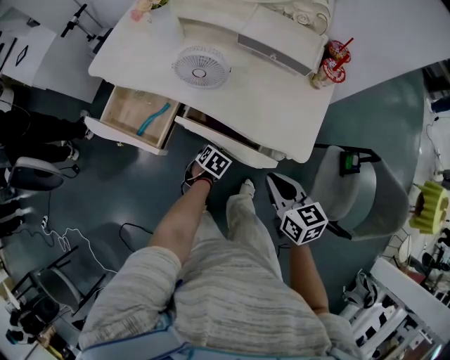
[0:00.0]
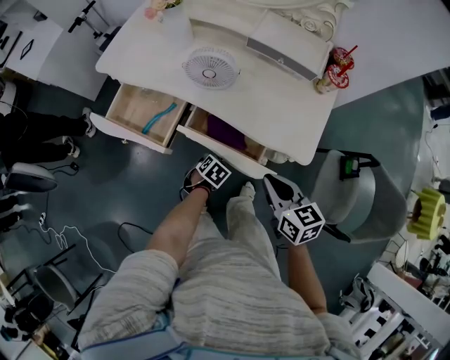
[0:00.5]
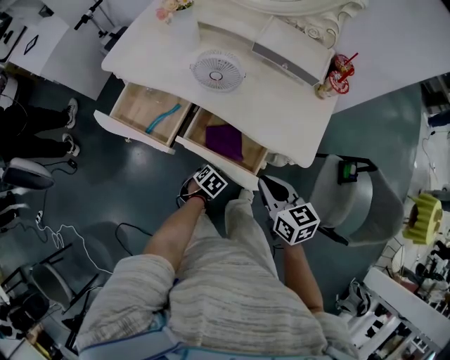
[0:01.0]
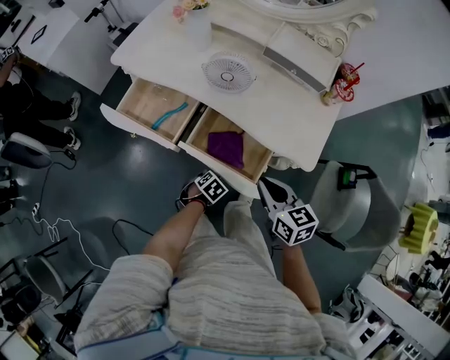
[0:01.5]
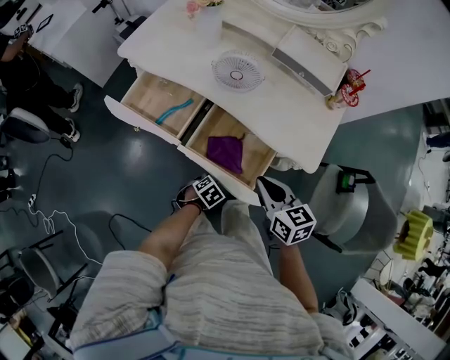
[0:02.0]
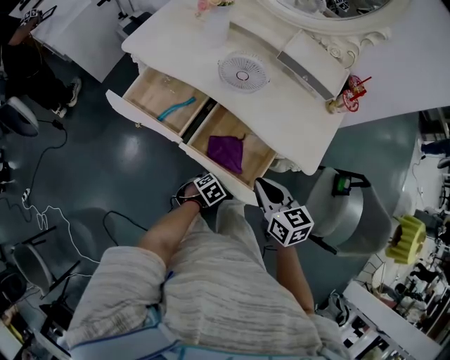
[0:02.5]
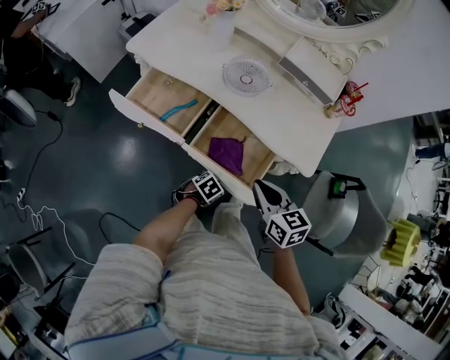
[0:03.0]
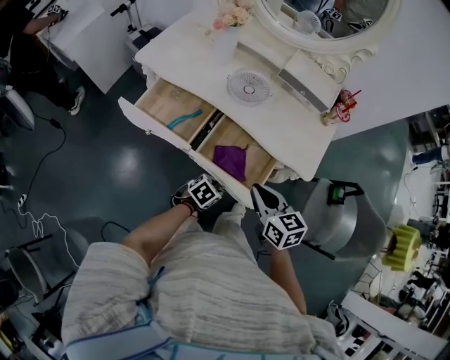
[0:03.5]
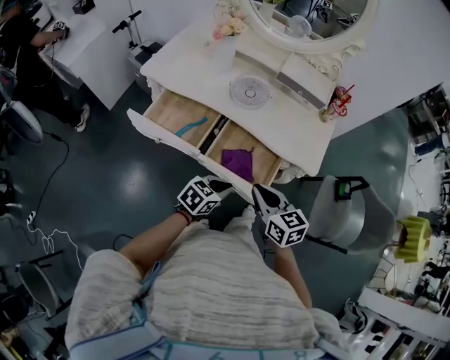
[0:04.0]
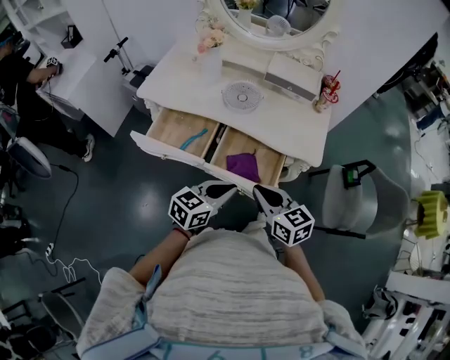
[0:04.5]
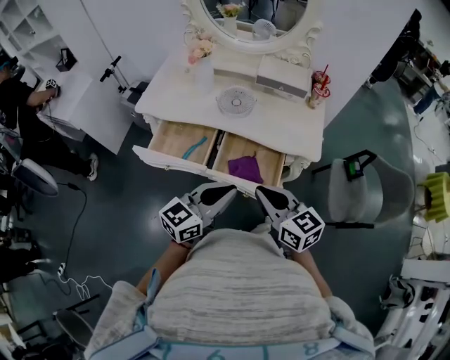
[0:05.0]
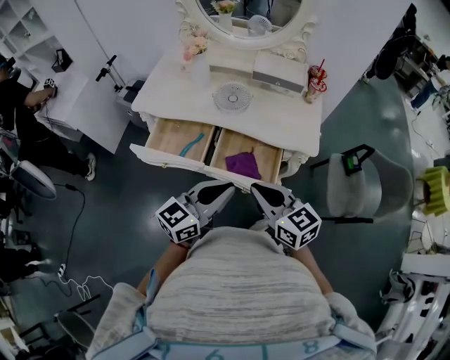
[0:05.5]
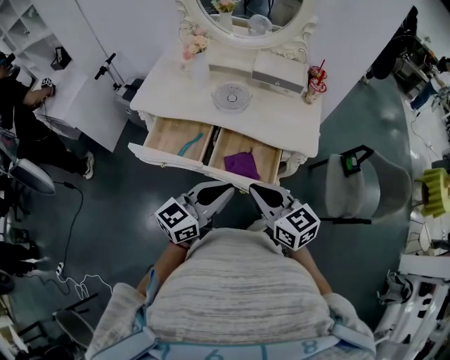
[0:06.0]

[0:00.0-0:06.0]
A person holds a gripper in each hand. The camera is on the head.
0:00.0 to 0:02.0: The left gripper is displaced backward by about 15 cm. Meanwhile the right gripper travels to the left by approximately 10 cm.
0:02.0 to 0:04.0: The left gripper moves upward, about 20 cm, and angles its fingers upward, by roughly 40 degrees. The right gripper changes place by approximately 10 cm.
0:04.0 to 0:06.0: The right gripper is displaced upward and backward by some 10 cm; the left gripper travels upward by roughly 20 cm, and angles its fingers upward, by about 40 degrees.

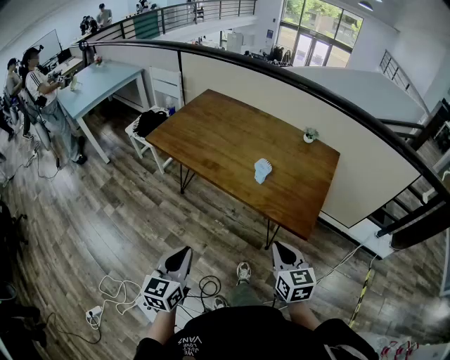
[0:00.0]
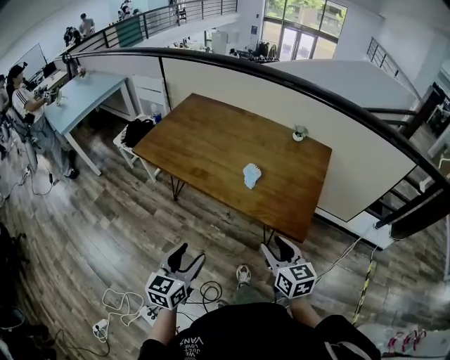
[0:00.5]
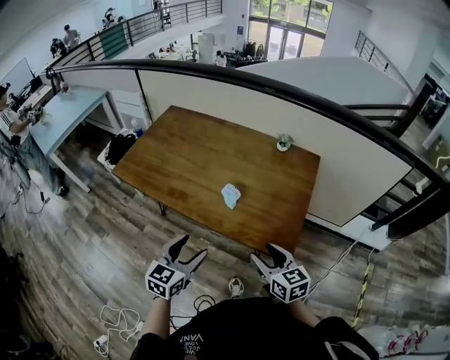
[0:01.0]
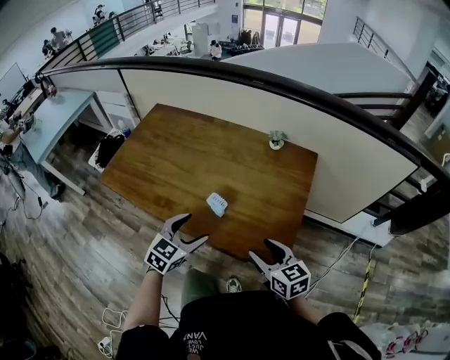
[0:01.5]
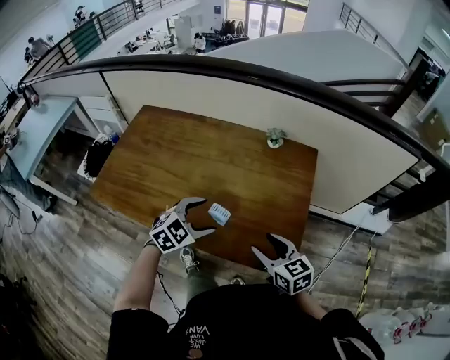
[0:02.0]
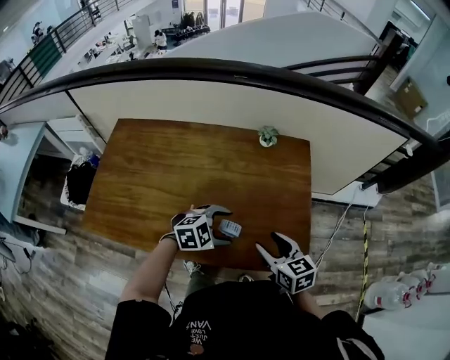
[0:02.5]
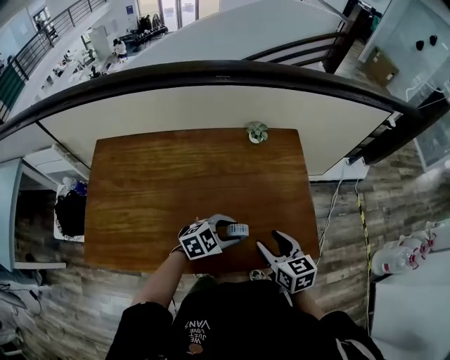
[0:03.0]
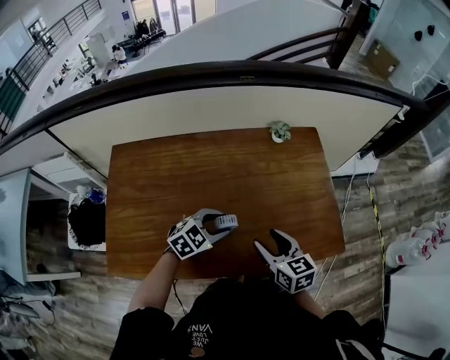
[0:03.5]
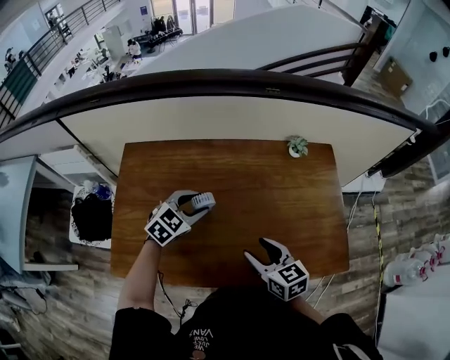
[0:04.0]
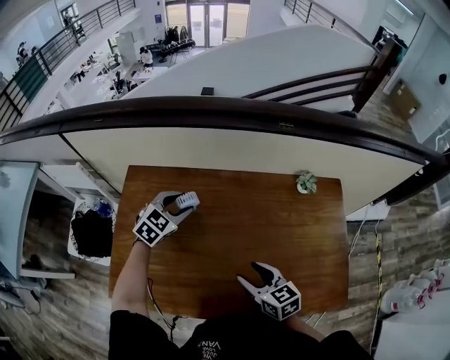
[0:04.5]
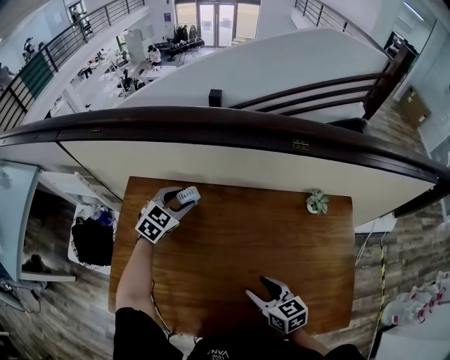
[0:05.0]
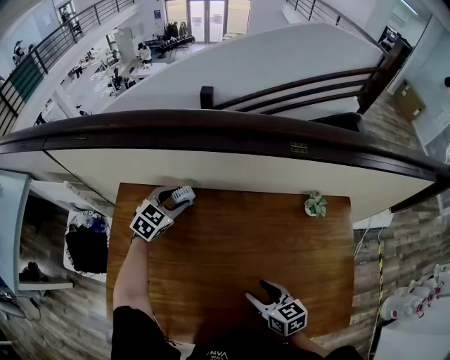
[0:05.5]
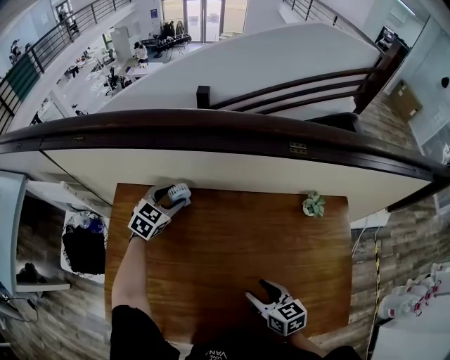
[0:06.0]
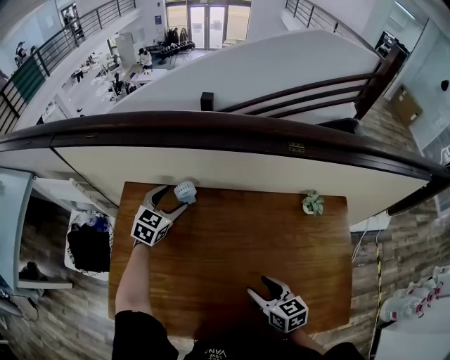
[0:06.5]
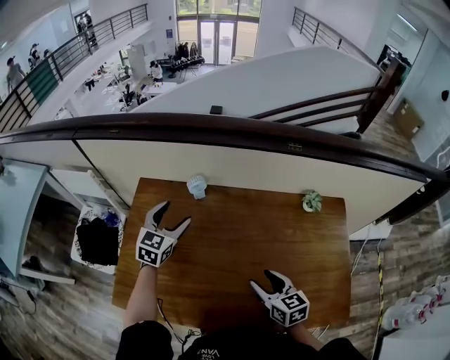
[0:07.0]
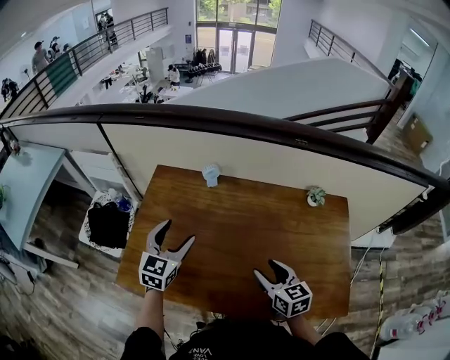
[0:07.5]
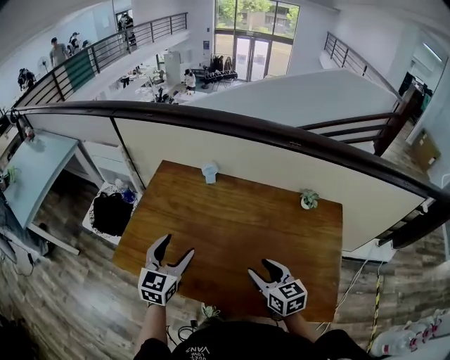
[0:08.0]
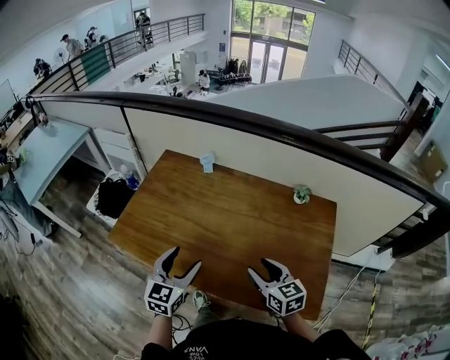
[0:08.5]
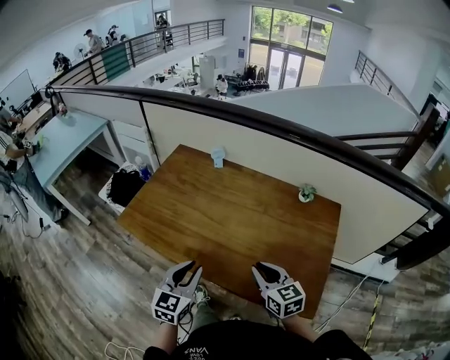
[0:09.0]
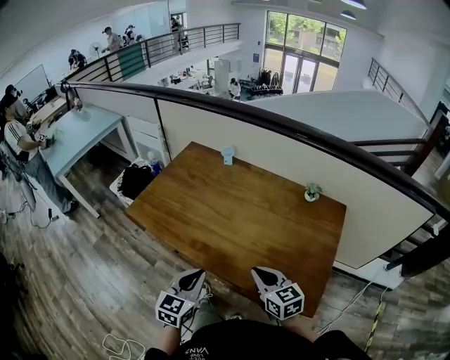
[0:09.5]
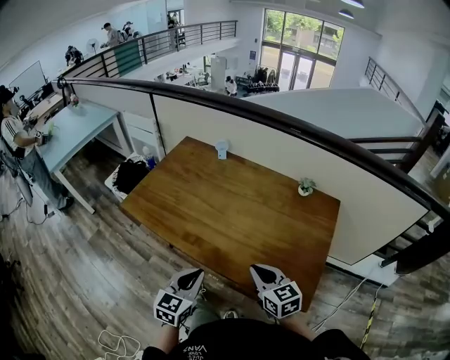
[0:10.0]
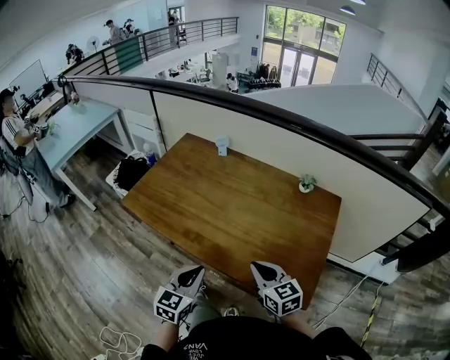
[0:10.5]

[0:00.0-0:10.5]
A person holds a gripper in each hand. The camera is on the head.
0:00.0 to 0:02.0: The left gripper heads forward and to the right, covering about 40 cm, rotates roughly 70 degrees, and opens its fingers. Meanwhile the right gripper goes some 25 cm forward, and opens.
0:02.0 to 0:04.0: The left gripper shifts by approximately 30 cm, and closes up. The right gripper moves roughly 30 cm.
0:04.0 to 0:06.5: The left gripper shifts roughly 25 cm forward and to the left, changes its angle by roughly 30 degrees, and opens up, while the right gripper heads forward and downward, covering approximately 10 cm.
0:06.5 to 0:08.5: The right gripper heads backward, upward and to the right, covering about 20 cm, and swivels some 20 degrees. Meanwhile the left gripper goes approximately 50 cm backward, and changes its angle by about 30 degrees.
0:08.5 to 0:10.5: The right gripper is displaced backward by some 10 cm, and closes. Meanwhile the left gripper is displaced backward by roughly 15 cm, and closes up.

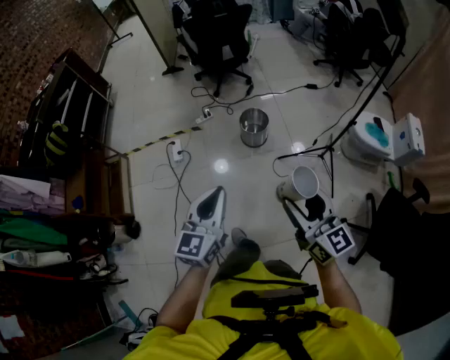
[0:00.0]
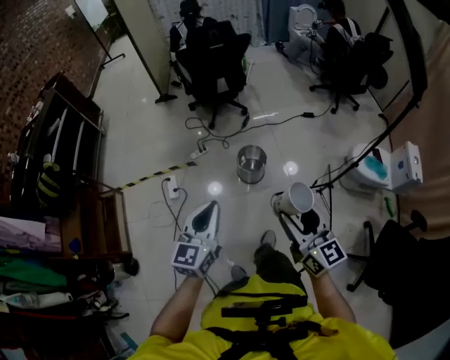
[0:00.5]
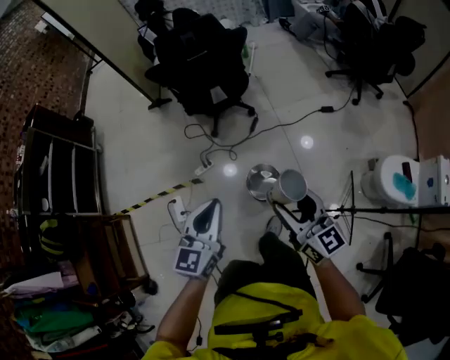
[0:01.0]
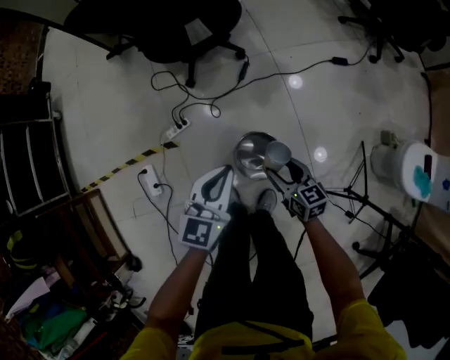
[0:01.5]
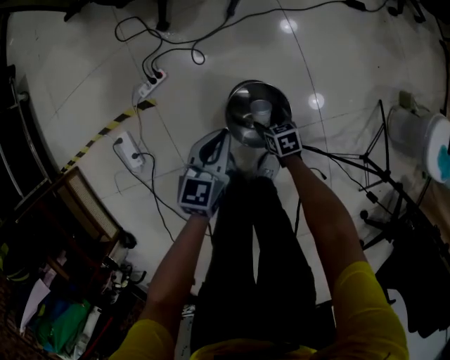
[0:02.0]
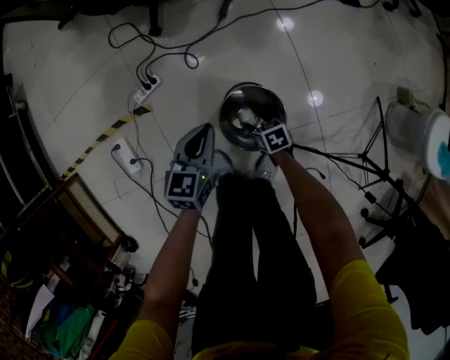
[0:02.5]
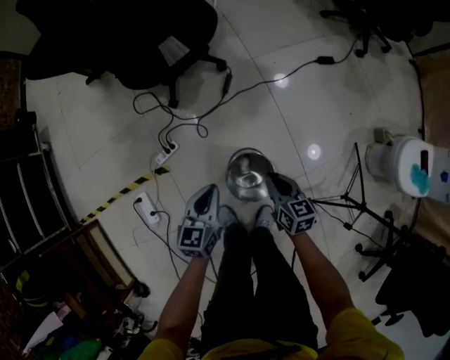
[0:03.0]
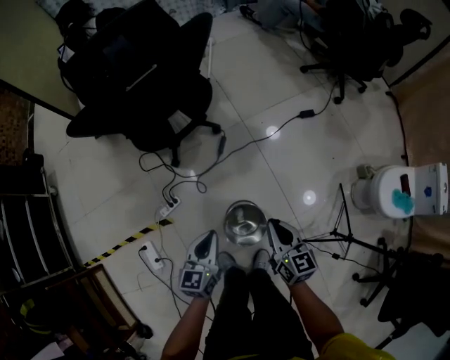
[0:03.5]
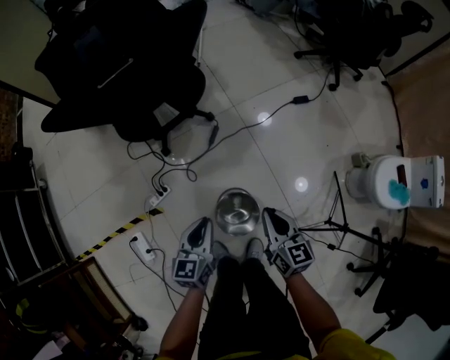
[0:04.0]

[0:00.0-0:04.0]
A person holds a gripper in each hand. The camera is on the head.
0:00.0 to 0:02.0: The two grippers travel together, forward, roughly 70 cm. Both grippers travel together downward, approximately 70 cm. The left gripper swivels roughly 30 degrees, while the right gripper tips its fingers downward by about 60 degrees.
0:02.0 to 0:04.0: The left gripper travels upward by about 20 cm. Meanwhile the right gripper is displaced upward by about 50 cm, points its fingers about 40 degrees further upward, and closes.

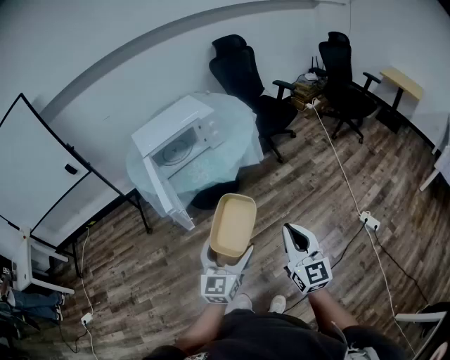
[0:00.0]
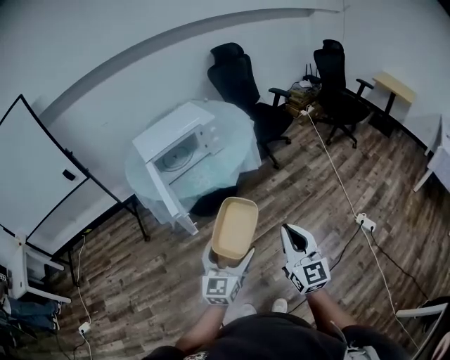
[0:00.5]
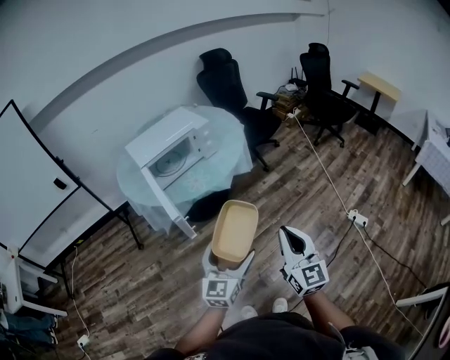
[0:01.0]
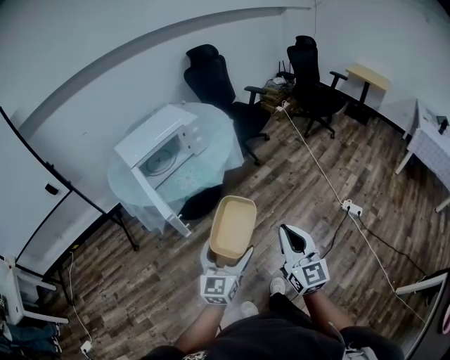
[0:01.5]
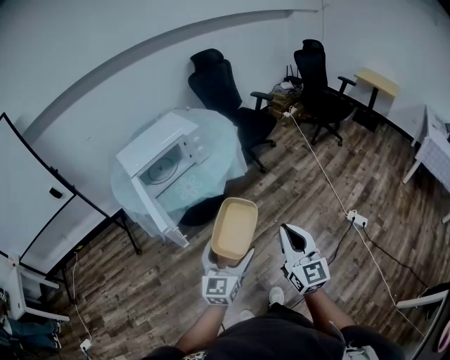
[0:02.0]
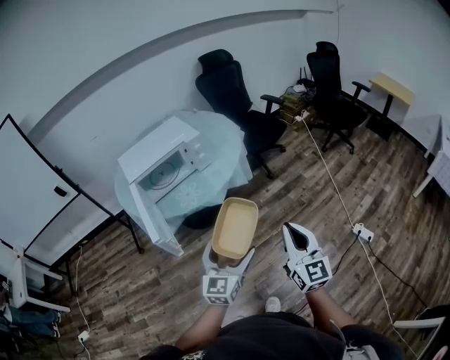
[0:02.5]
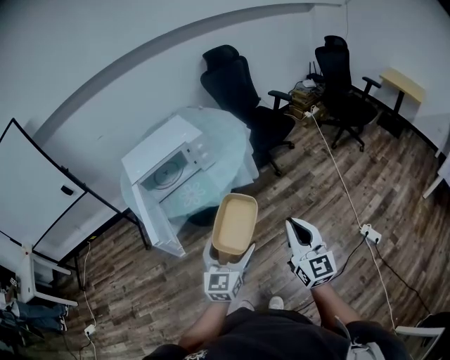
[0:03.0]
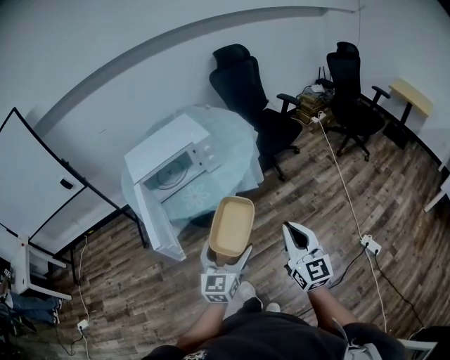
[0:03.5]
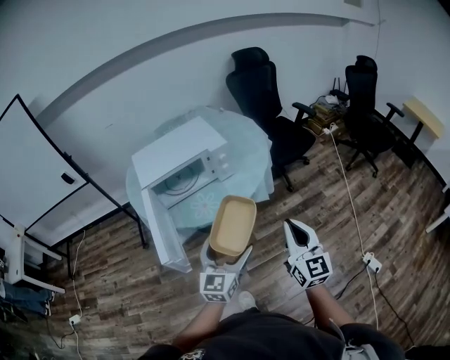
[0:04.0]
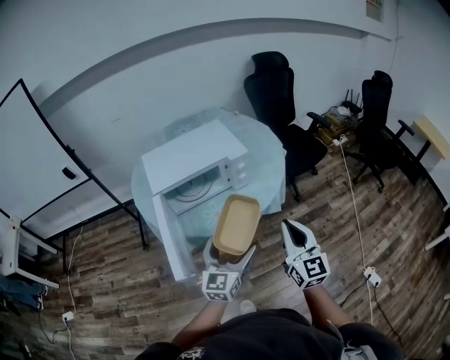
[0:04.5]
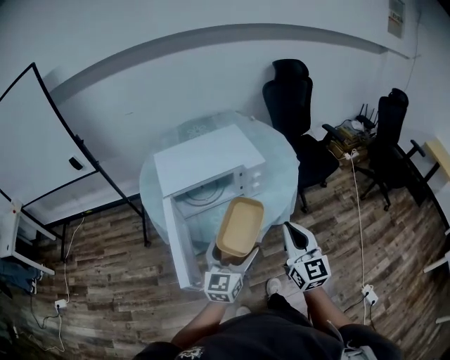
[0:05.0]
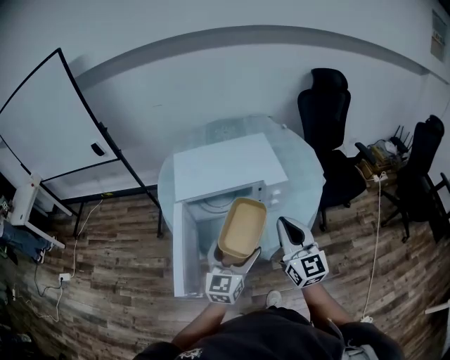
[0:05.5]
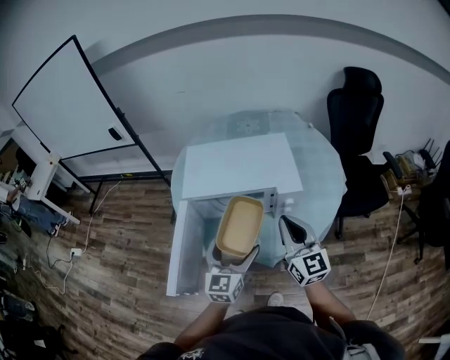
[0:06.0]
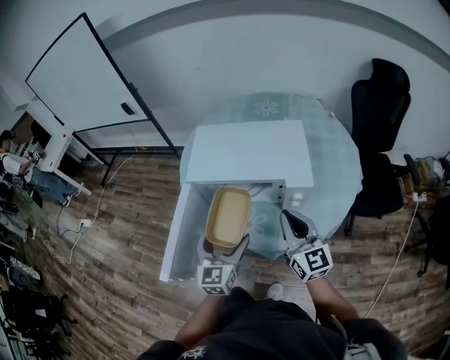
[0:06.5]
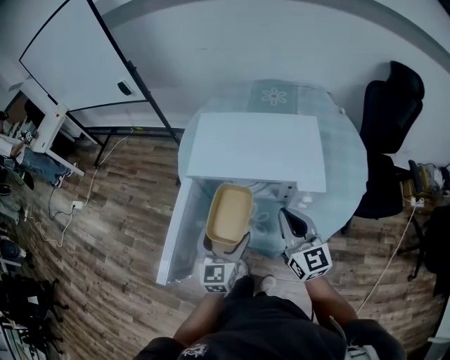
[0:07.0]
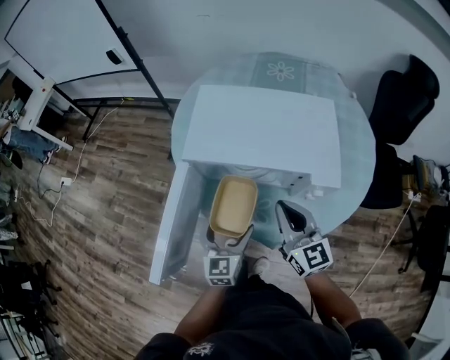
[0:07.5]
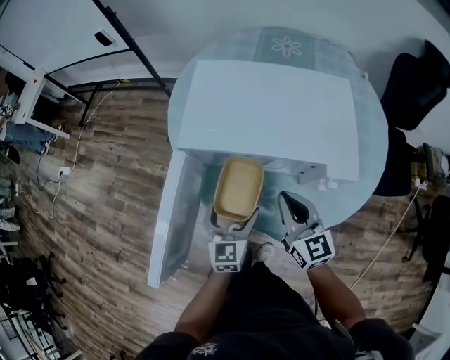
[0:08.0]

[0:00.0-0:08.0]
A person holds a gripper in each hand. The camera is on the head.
0:02.0 to 0:04.0: The two grippers go approximately 25 cm forward.
0:04.0 to 0:06.0: The right gripper ends up approximately 35 cm from where it was, and swivels some 30 degrees. Meanwhile the left gripper shifts by about 25 cm, and swivels some 30 degrees.
0:06.0 to 0:08.0: The two grippers go approximately 20 cm downward and forward. The right gripper rotates approximately 20 degrees; the left gripper swivels some 20 degrees.
